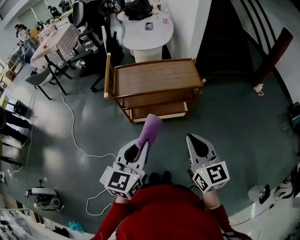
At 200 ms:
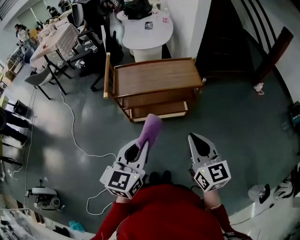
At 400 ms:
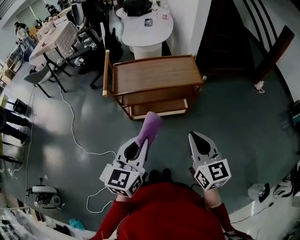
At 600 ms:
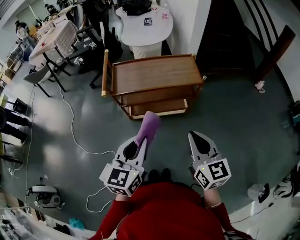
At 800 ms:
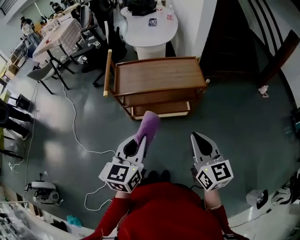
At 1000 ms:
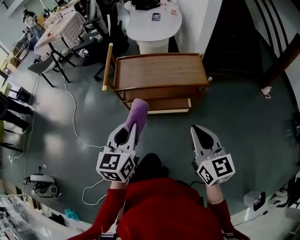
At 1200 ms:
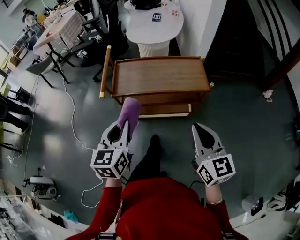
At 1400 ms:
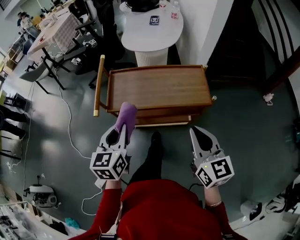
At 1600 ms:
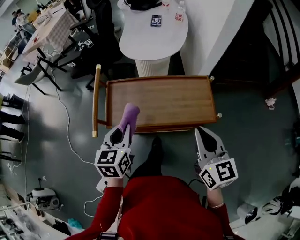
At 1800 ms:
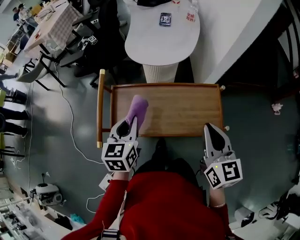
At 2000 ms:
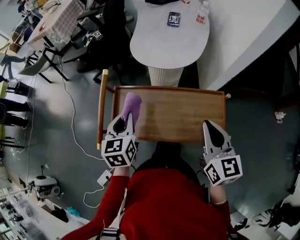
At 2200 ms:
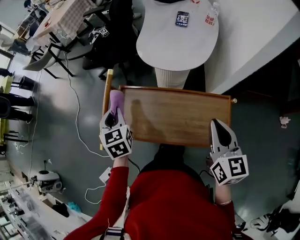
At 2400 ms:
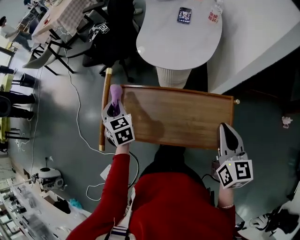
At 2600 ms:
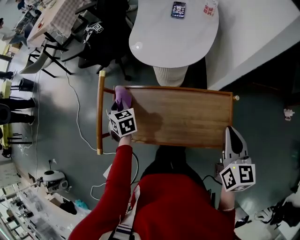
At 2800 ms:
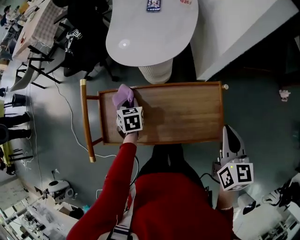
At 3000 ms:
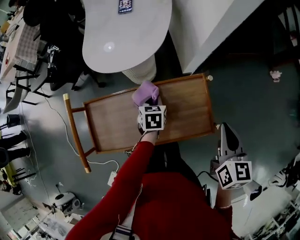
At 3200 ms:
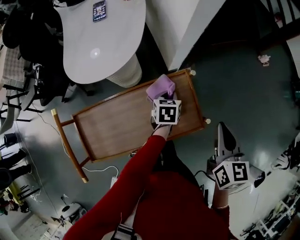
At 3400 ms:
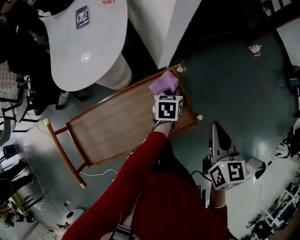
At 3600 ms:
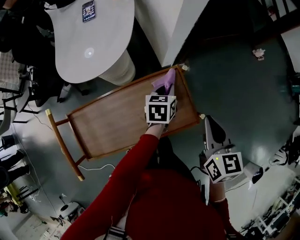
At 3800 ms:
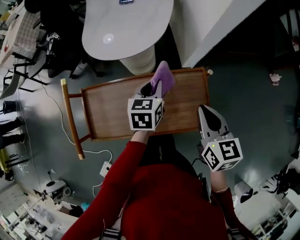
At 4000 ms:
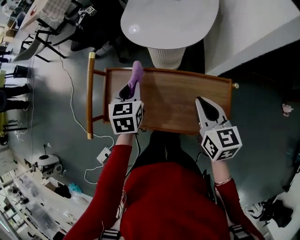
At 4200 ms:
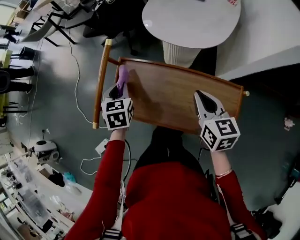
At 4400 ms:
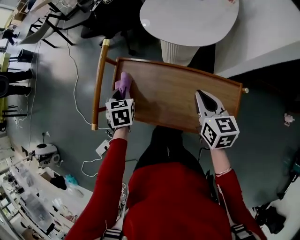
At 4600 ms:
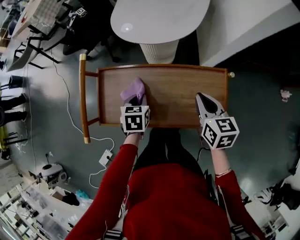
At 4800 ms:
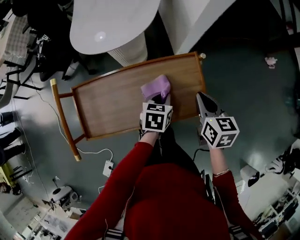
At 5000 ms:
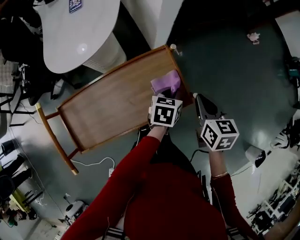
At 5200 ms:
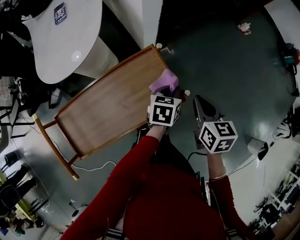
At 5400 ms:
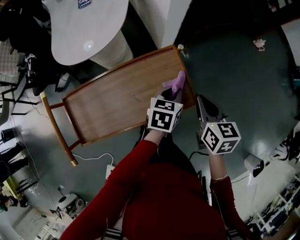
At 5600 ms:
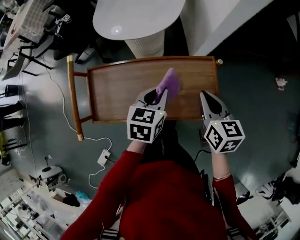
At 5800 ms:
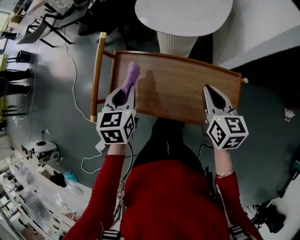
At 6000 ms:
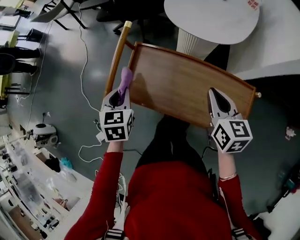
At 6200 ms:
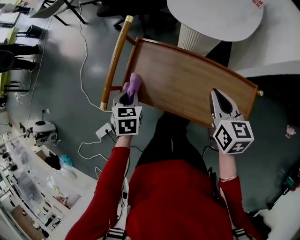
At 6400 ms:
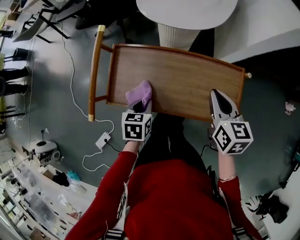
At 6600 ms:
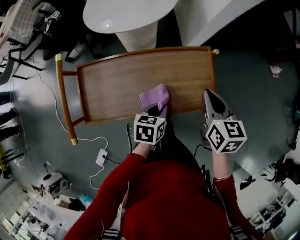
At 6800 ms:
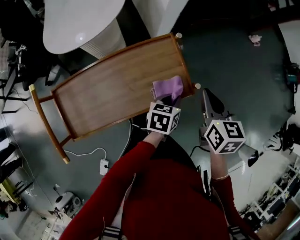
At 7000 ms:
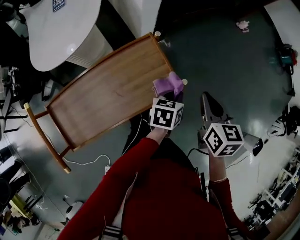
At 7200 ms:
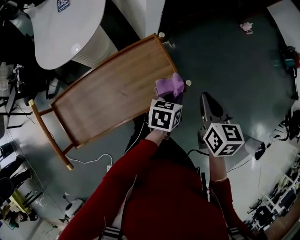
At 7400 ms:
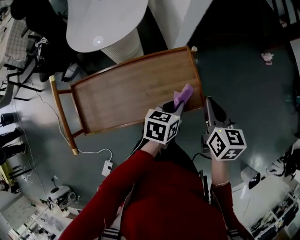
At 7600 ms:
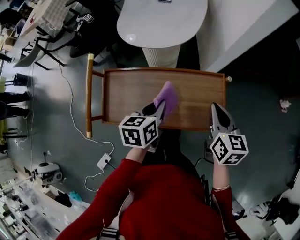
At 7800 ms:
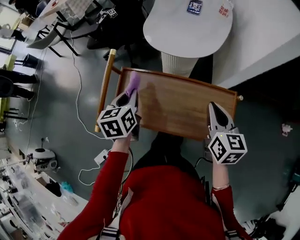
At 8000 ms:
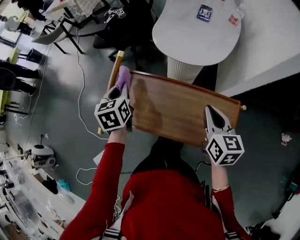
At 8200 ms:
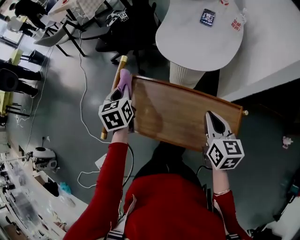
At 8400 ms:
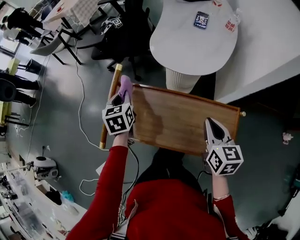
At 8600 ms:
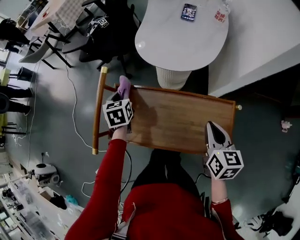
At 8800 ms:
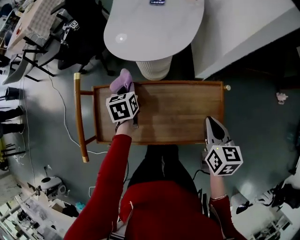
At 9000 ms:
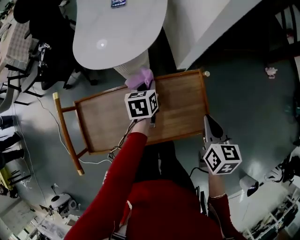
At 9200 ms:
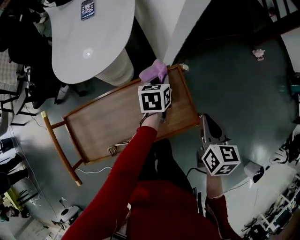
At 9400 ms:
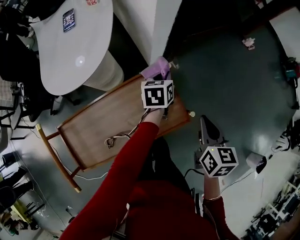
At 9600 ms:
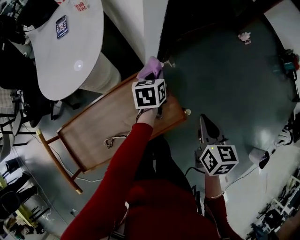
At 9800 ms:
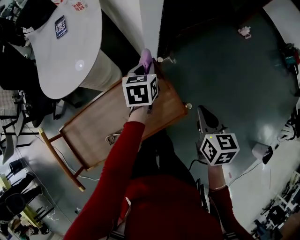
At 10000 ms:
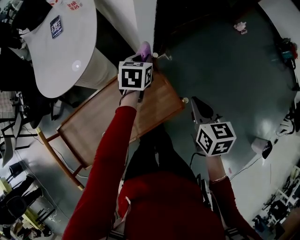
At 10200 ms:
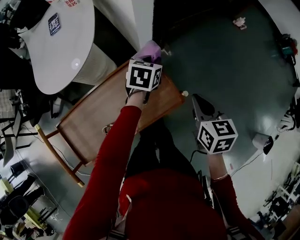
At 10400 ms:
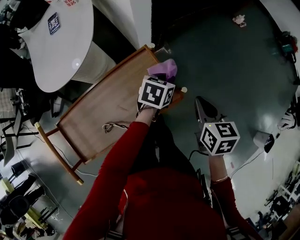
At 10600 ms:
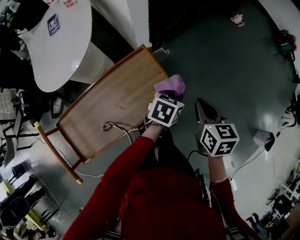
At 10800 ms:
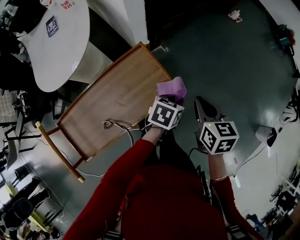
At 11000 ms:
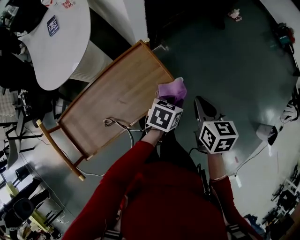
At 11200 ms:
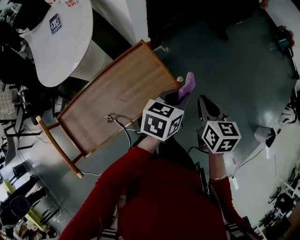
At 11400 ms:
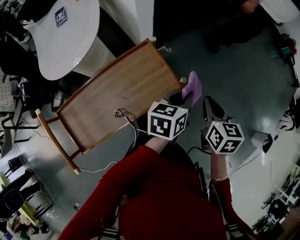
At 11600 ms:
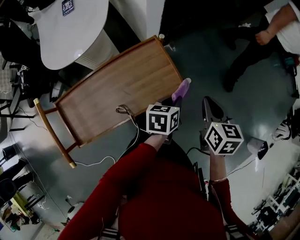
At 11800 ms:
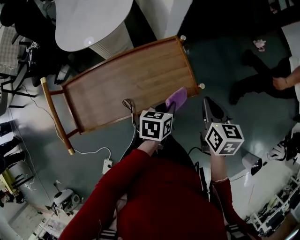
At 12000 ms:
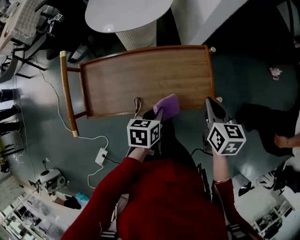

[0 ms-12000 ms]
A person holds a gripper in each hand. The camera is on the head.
0 ms to 1600 ms: The two grippers go approximately 25 cm forward. The left gripper rotates roughly 20 degrees.
1600 ms to 3000 ms: The left gripper ends up roughly 30 cm from where it was, and turns by some 30 degrees. Meanwhile the right gripper ends up approximately 15 cm from where it was, and rotates some 30 degrees.
3000 ms to 4400 ms: The left gripper changes place by roughly 30 cm, and swivels approximately 30 degrees. Meanwhile the right gripper shifts by some 25 cm, and swivels about 30 degrees.
4400 ms to 6000 ms: The left gripper goes roughly 5 cm upward.
6000 ms to 7600 ms: The left gripper goes downward and returns, roughly 10 cm each way, and turns by about 40 degrees, while the right gripper turns by about 20 degrees.
9000 ms to 10400 ms: The left gripper moves approximately 25 cm, and swivels some 50 degrees, while the right gripper moves approximately 10 cm.
10400 ms to 12000 ms: The left gripper goes upward and returns, about 10 cm each way, and turns by about 50 degrees. The right gripper changes place by some 5 cm, and turns by roughly 20 degrees.

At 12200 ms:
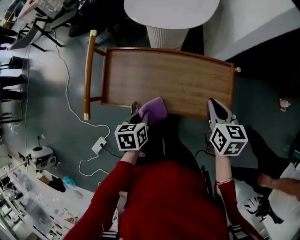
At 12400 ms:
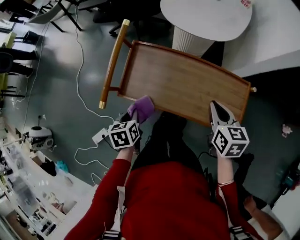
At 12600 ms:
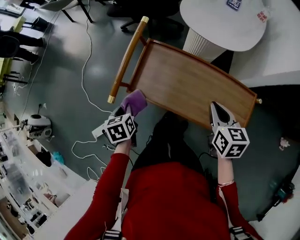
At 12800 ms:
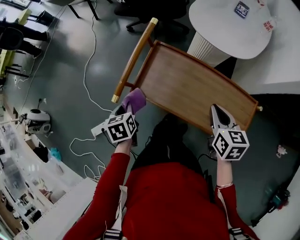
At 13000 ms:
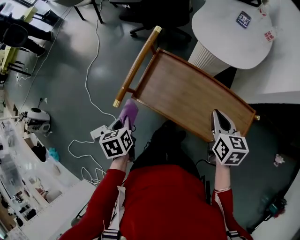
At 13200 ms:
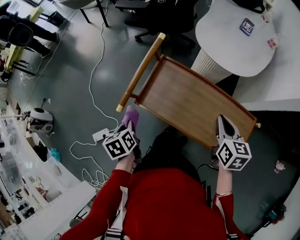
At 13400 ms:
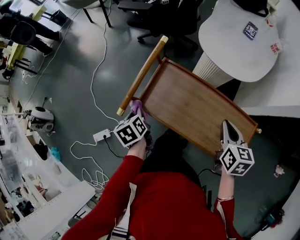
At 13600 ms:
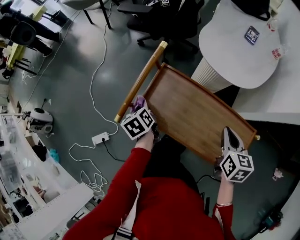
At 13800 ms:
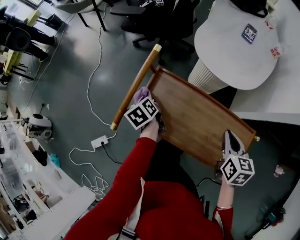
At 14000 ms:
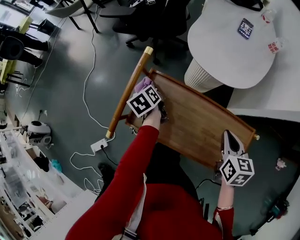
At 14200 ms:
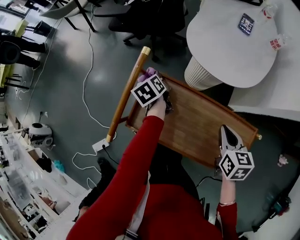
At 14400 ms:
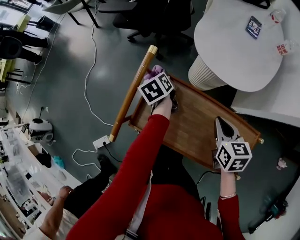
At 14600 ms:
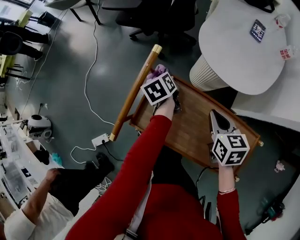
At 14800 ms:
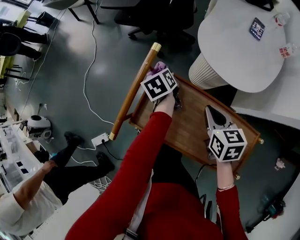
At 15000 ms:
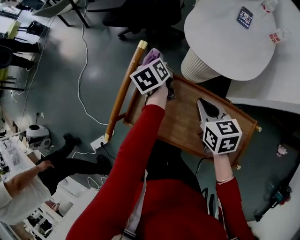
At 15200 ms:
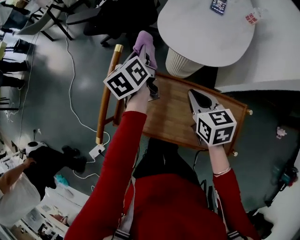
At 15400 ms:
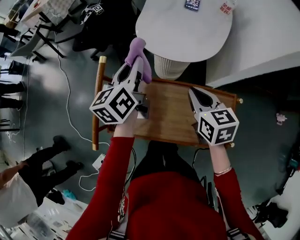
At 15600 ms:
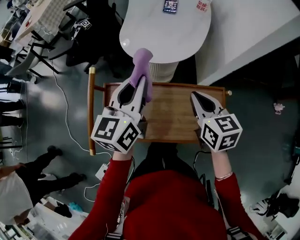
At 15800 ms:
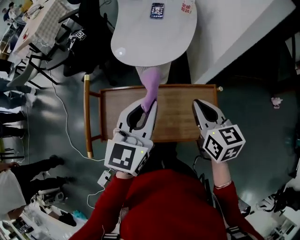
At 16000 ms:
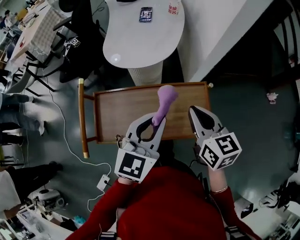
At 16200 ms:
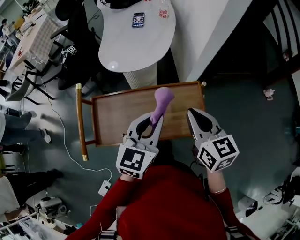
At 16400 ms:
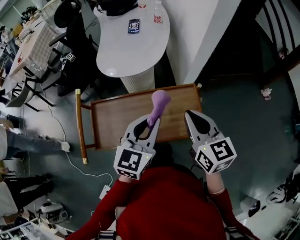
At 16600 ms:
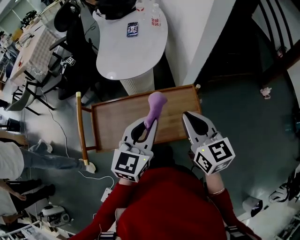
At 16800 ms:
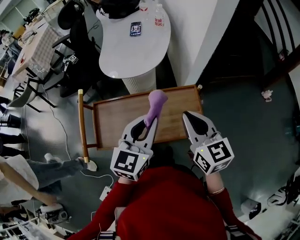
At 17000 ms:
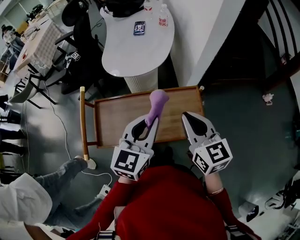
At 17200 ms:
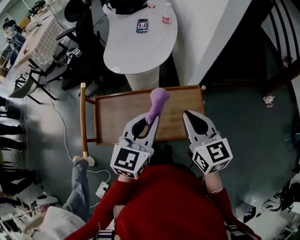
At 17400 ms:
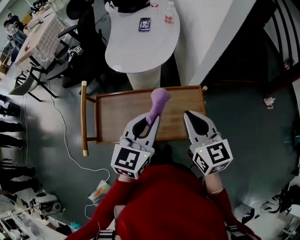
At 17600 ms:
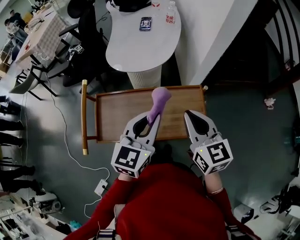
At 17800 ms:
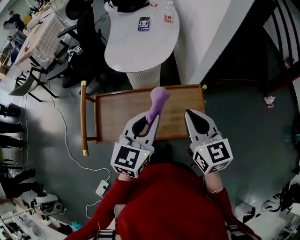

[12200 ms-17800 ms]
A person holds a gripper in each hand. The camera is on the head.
12200 ms to 13600 ms: The left gripper shifts by about 20 cm, and rotates some 50 degrees. Meanwhile the right gripper moves about 10 cm.
13600 ms to 15000 ms: The left gripper shifts roughly 25 cm forward and to the right, while the right gripper travels forward and to the left by some 15 cm.
15000 ms to 16400 ms: The right gripper ends up roughly 25 cm from where it was, and swivels about 40 degrees, while the left gripper changes place by roughly 40 cm, and changes its angle by approximately 80 degrees.
16400 ms to 17800 ms: The grippers move only a little.

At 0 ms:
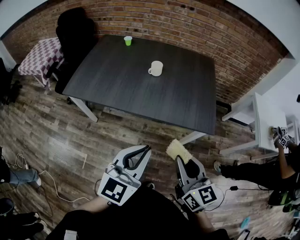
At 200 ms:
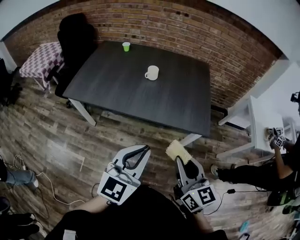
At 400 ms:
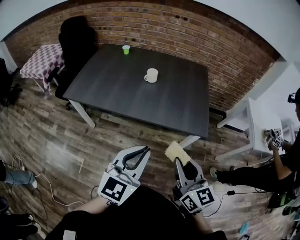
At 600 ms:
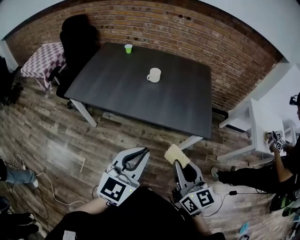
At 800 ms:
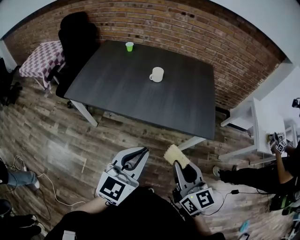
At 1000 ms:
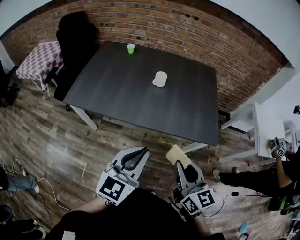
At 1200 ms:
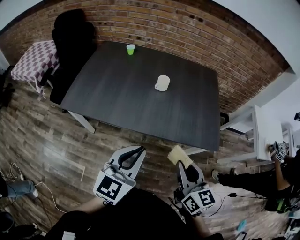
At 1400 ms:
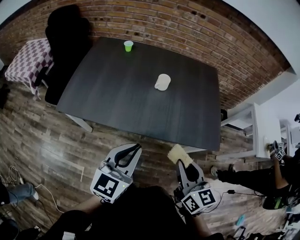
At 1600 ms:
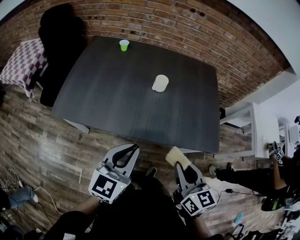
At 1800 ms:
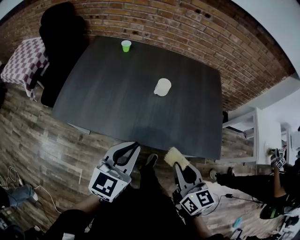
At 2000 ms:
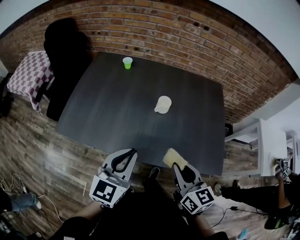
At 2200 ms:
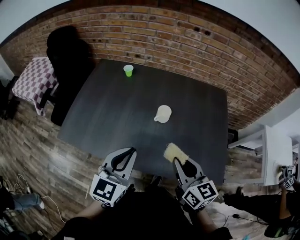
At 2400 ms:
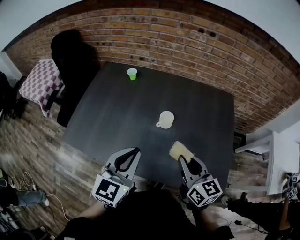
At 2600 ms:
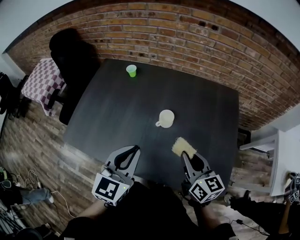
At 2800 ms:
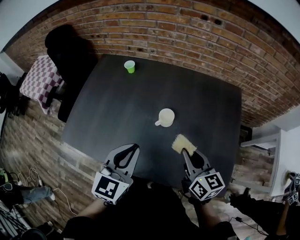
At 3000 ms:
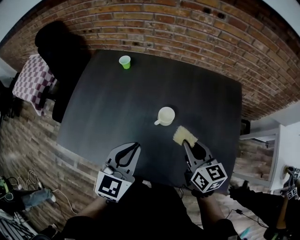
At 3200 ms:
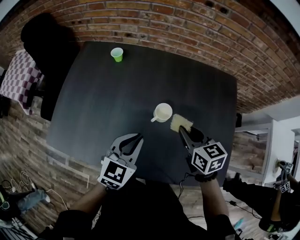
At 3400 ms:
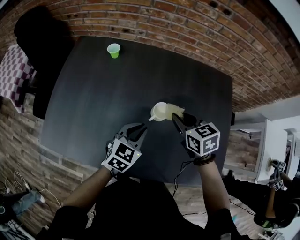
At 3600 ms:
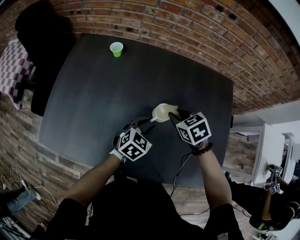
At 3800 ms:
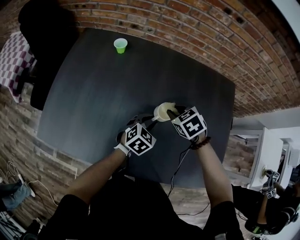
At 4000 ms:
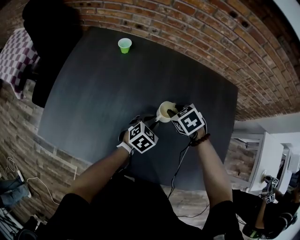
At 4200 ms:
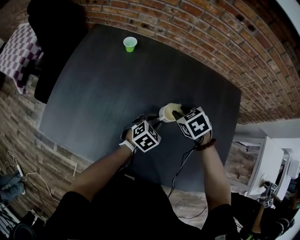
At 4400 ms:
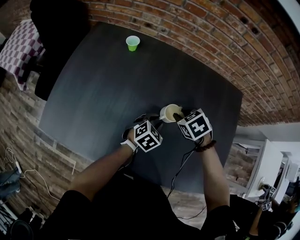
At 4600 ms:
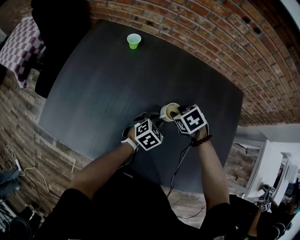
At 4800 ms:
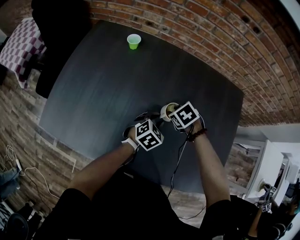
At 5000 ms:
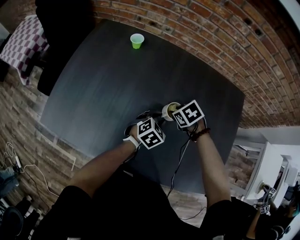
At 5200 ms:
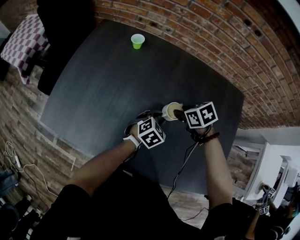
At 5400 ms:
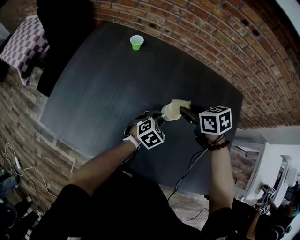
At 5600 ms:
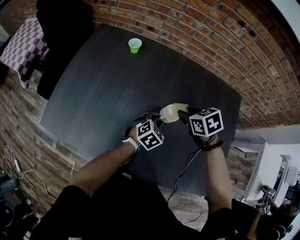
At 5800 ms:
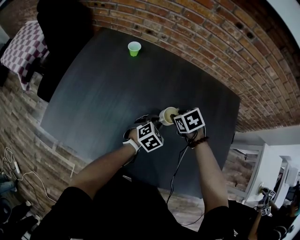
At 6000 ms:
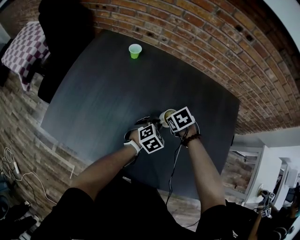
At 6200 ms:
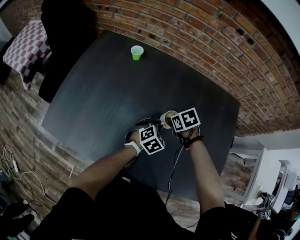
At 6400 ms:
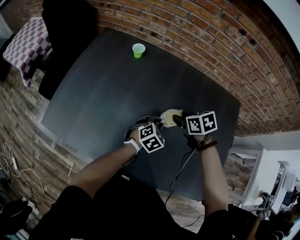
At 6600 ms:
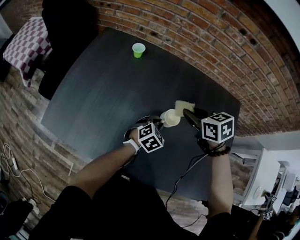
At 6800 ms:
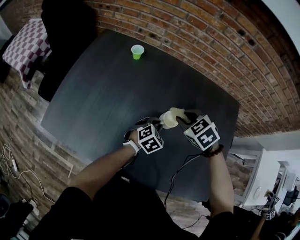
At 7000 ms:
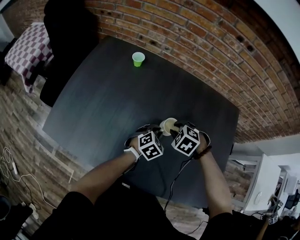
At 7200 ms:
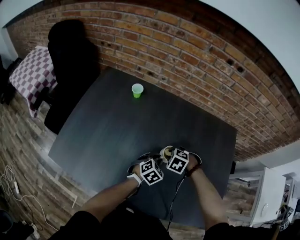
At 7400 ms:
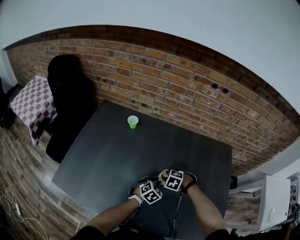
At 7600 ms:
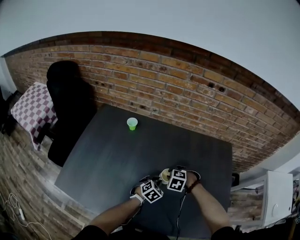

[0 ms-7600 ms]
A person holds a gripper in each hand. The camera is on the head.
0 ms to 1600 ms: The grippers both shift forward and to the left by some 25 cm.
1600 ms to 3000 ms: Both grippers travel together forward, about 35 cm.
3000 ms to 4600 ms: The right gripper travels downward, forward and to the left by some 25 cm, and tips its fingers downward by about 50 degrees; the left gripper heads downward and forward, covering about 30 cm, tilts its fingers some 30 degrees downward, and opens its fingers.
4600 ms to 6000 ms: The right gripper travels upward and back again, some 10 cm each way.
6000 ms to 7600 ms: The right gripper travels upward and back again, approximately 15 cm each way, and rolls counterclockwise, seen from behind, by roughly 40 degrees.
